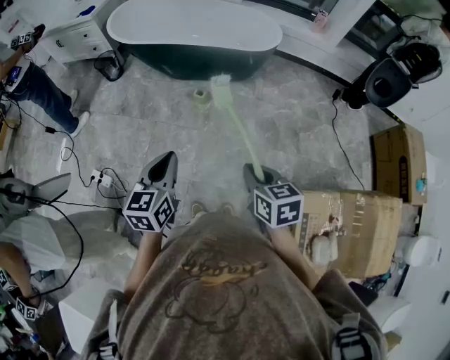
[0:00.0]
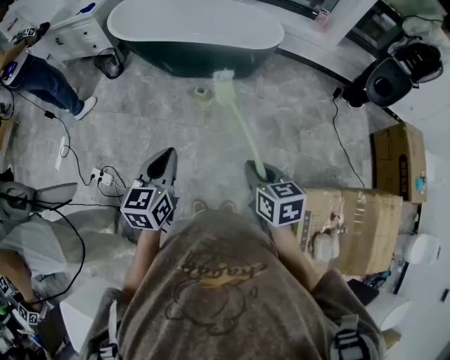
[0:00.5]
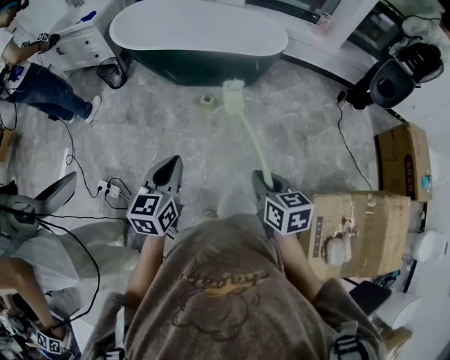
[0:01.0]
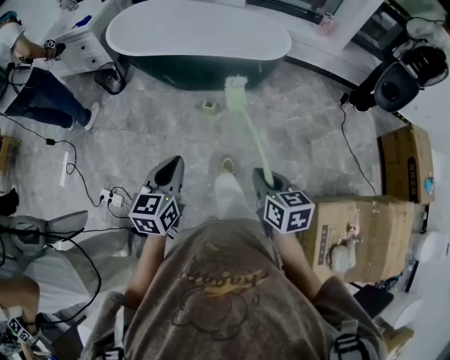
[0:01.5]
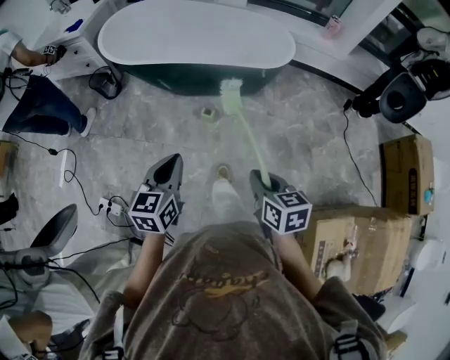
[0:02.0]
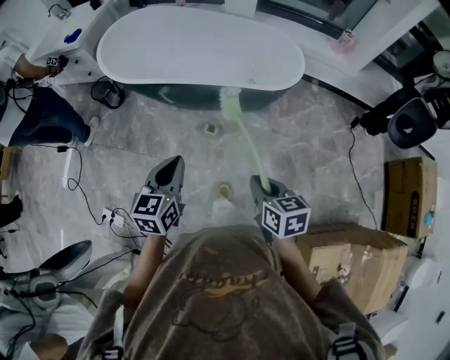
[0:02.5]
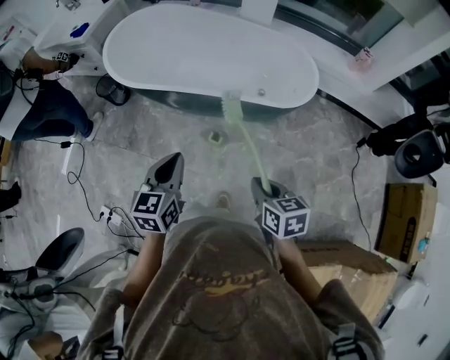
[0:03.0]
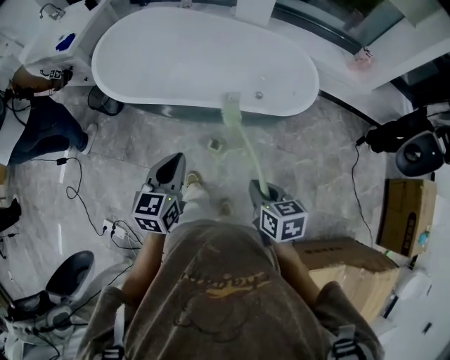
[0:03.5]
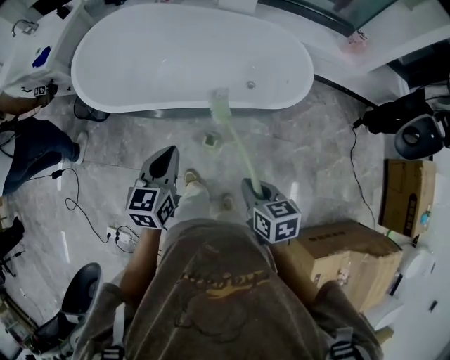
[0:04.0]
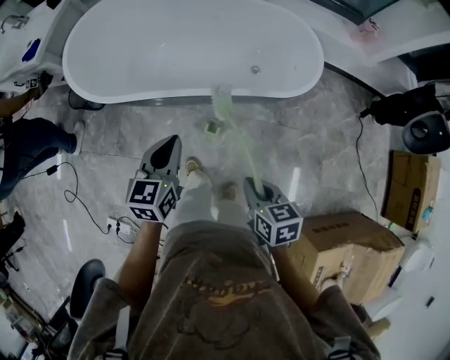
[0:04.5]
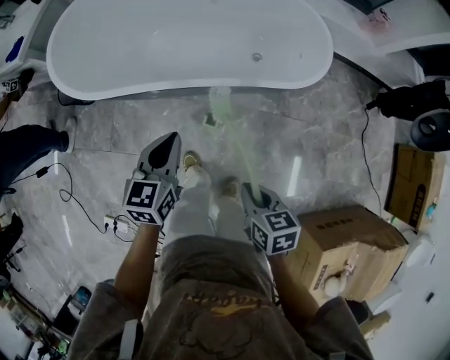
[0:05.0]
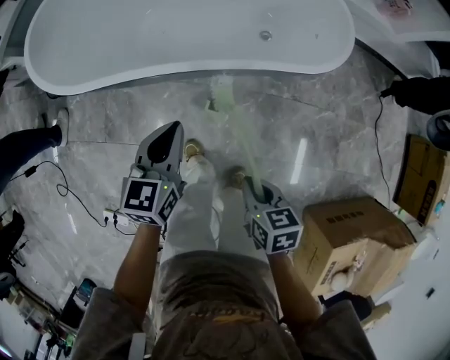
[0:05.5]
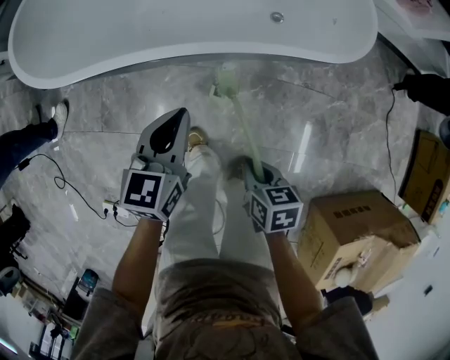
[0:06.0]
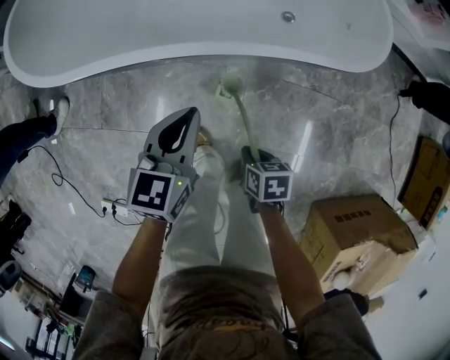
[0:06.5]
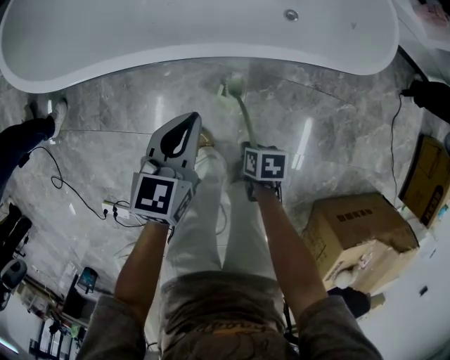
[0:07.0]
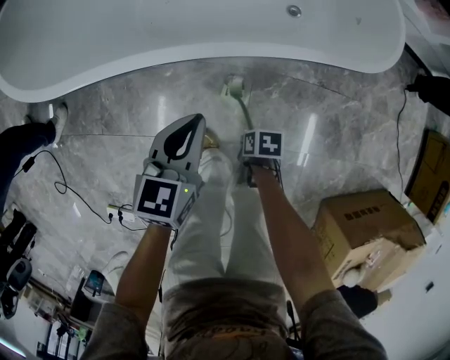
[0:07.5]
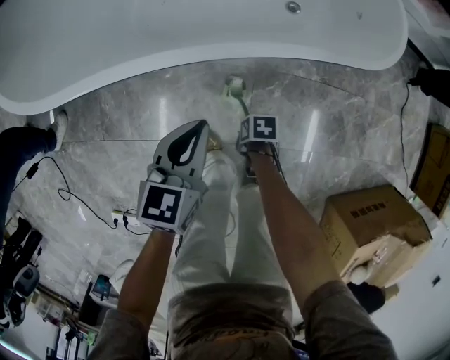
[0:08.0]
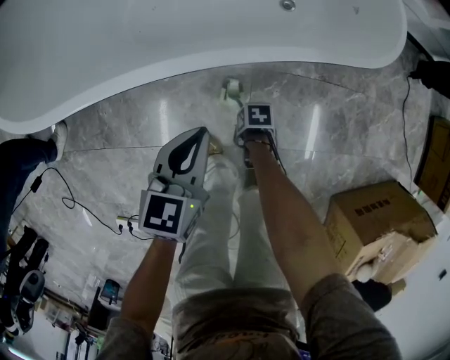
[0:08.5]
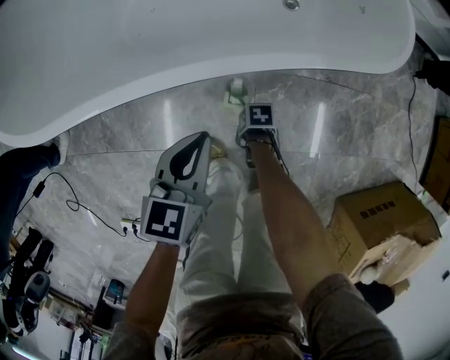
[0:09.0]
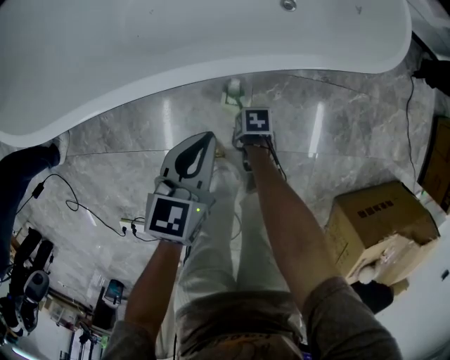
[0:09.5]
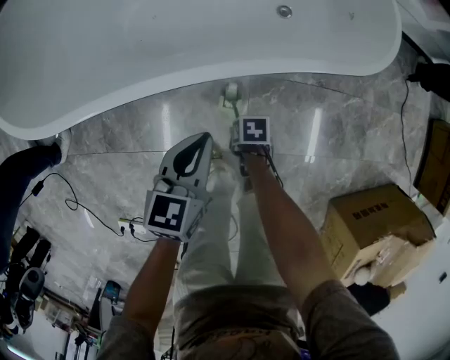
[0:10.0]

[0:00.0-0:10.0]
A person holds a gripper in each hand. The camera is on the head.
0:00.0 to 0:02.0: The grippers both shift forward by some 20 cm.
0:02.0 to 0:04.0: Both grippers move forward, roughly 35 cm.
0:04.0 to 0:06.0: Both grippers move downward, roughly 25 cm.
0:06.0 to 0:08.0: The left gripper heads downward, covering approximately 10 cm. The right gripper moves downward, approximately 25 cm, and changes its angle by approximately 40 degrees.
0:08.0 to 0:10.0: The right gripper changes place by some 5 cm, and opens up.

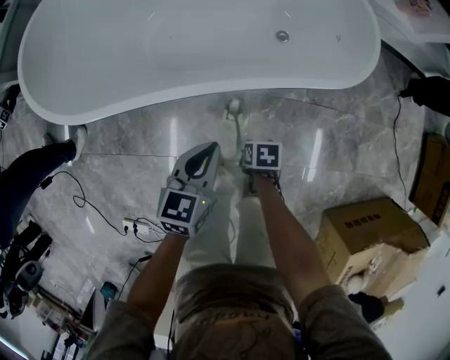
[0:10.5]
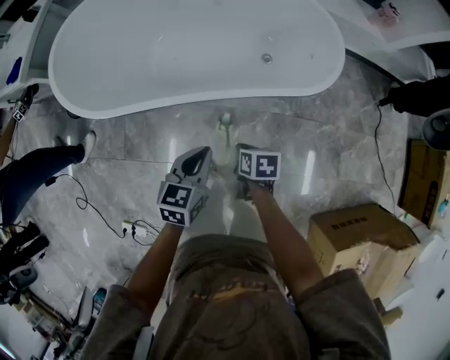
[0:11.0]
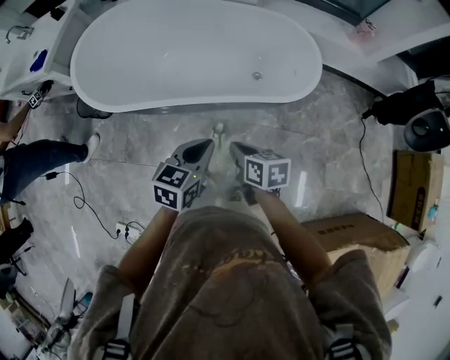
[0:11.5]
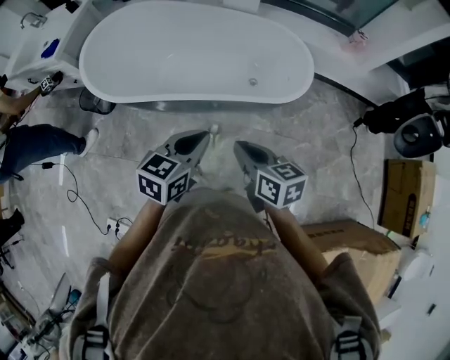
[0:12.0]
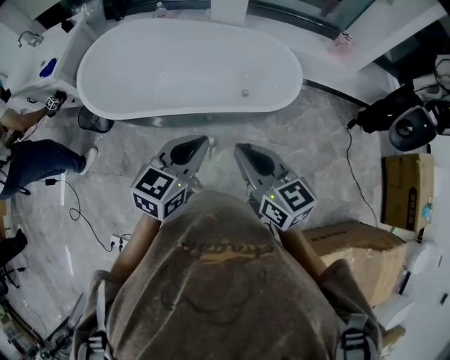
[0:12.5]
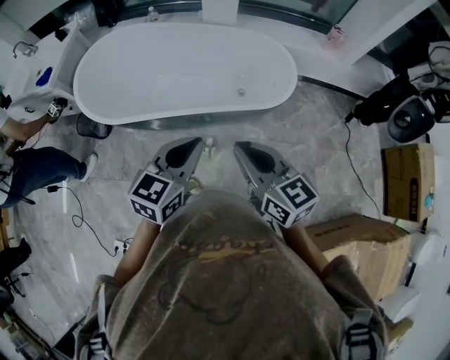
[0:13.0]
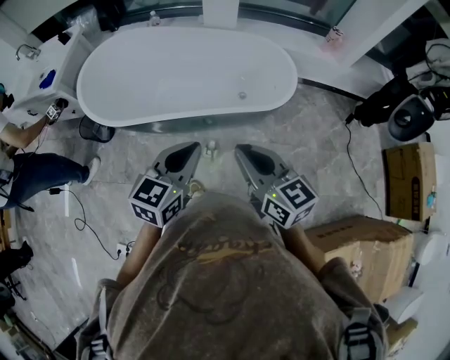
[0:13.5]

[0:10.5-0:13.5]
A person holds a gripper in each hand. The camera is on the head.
0:10.5 to 0:12.0: The right gripper moves upward, about 50 cm, and angles its fingers upward, by about 40 degrees; the left gripper shifts approximately 30 cm upward.
0:12.0 to 0:13.5: The right gripper moves upward, some 10 cm, and rotates some 20 degrees; the left gripper moves upward, about 5 cm.

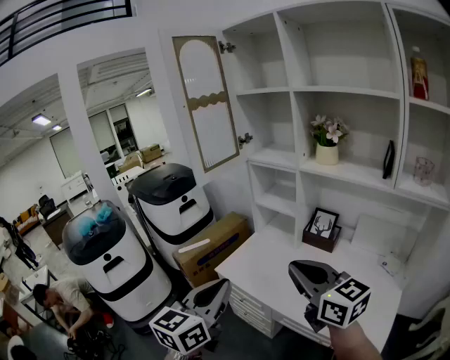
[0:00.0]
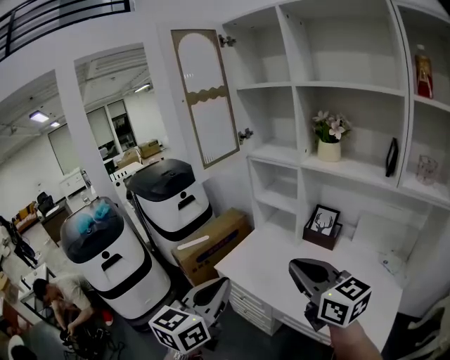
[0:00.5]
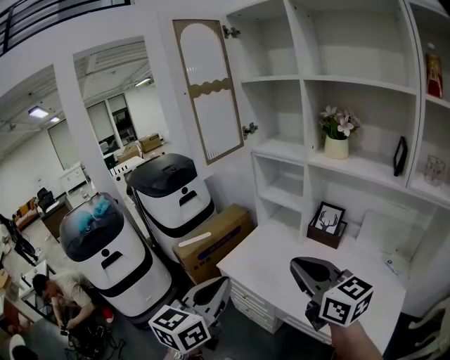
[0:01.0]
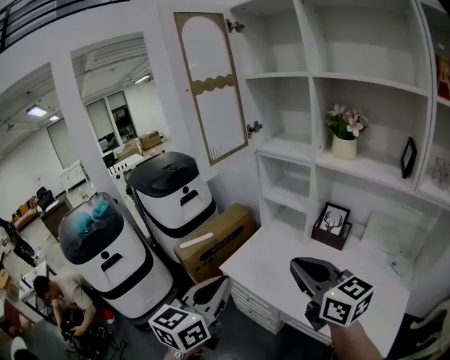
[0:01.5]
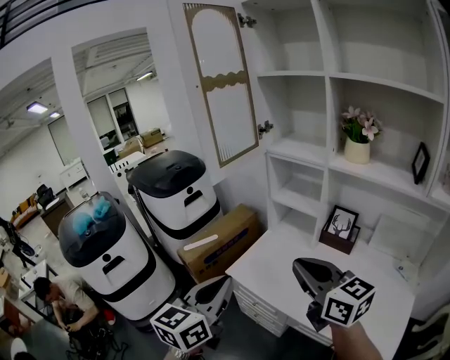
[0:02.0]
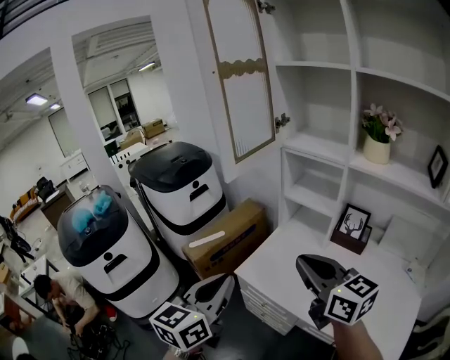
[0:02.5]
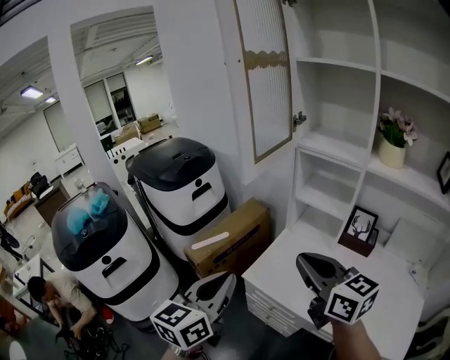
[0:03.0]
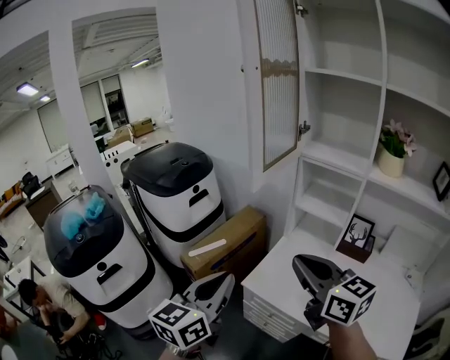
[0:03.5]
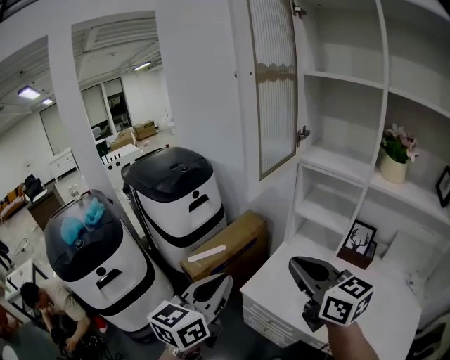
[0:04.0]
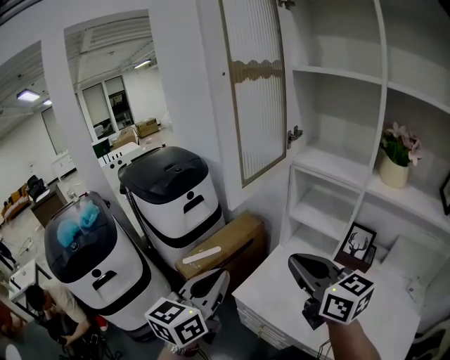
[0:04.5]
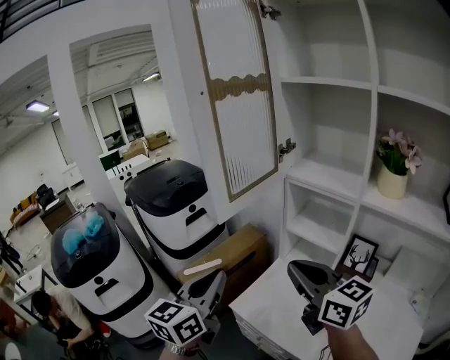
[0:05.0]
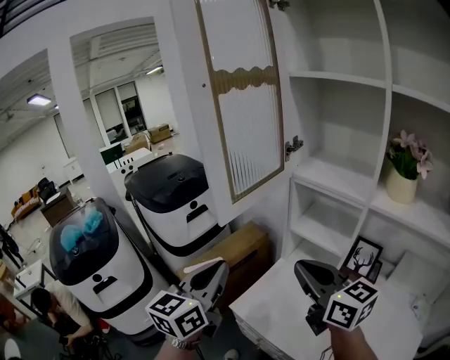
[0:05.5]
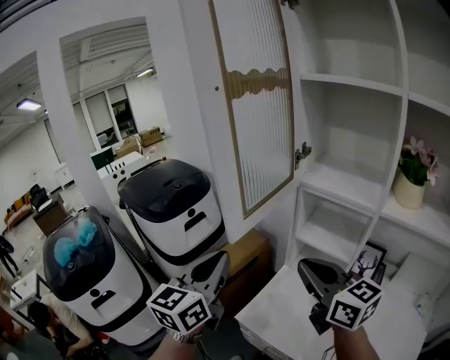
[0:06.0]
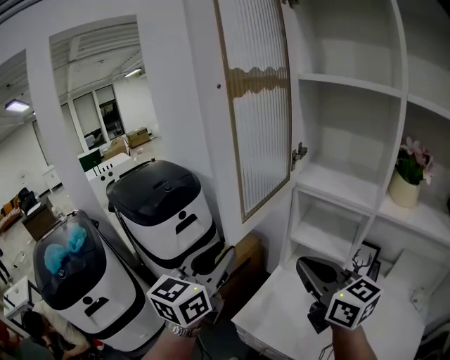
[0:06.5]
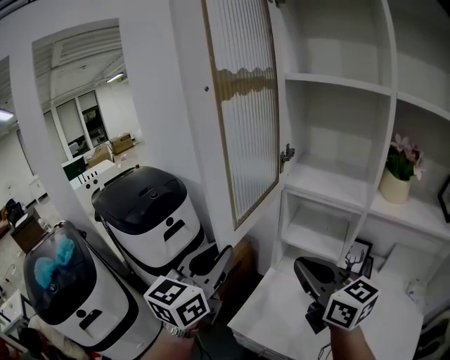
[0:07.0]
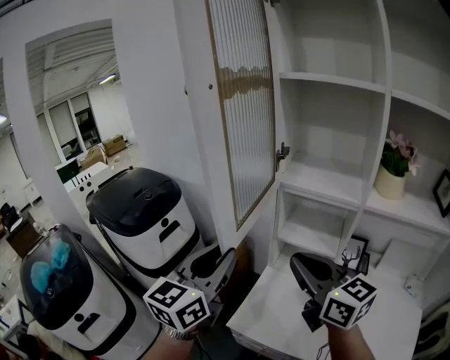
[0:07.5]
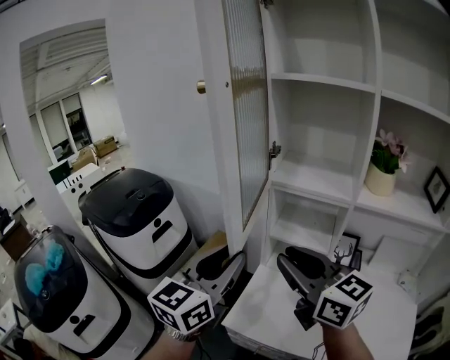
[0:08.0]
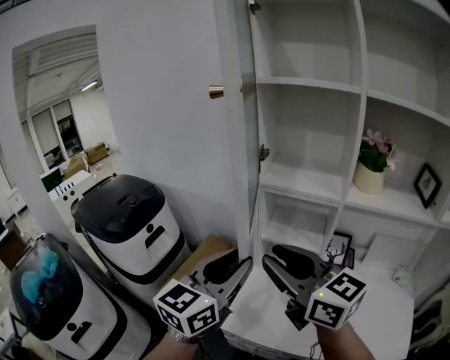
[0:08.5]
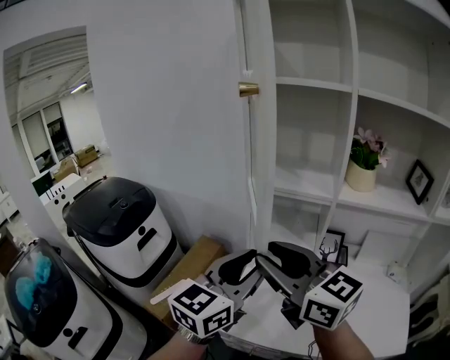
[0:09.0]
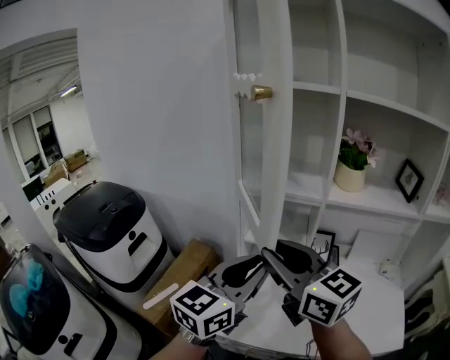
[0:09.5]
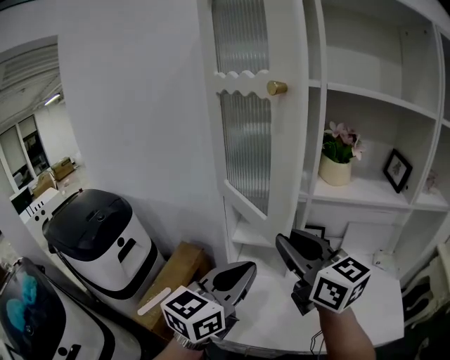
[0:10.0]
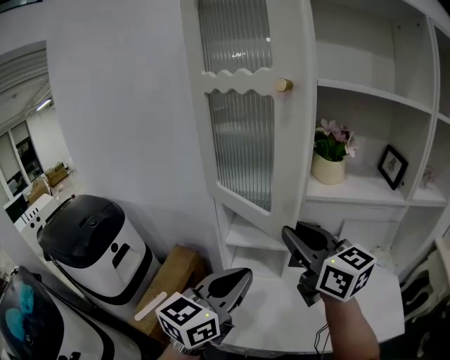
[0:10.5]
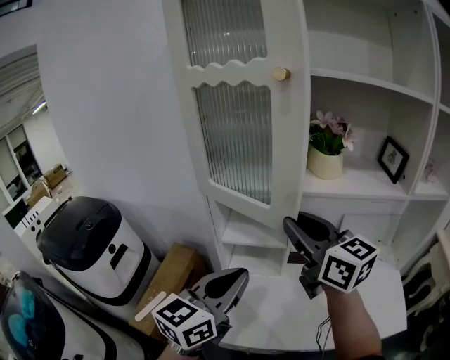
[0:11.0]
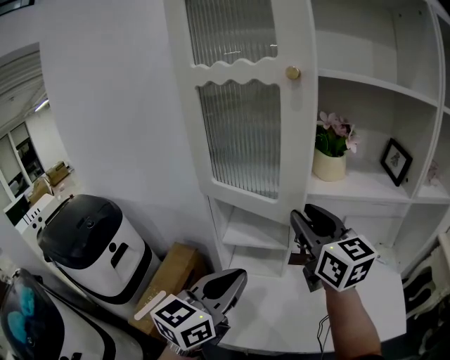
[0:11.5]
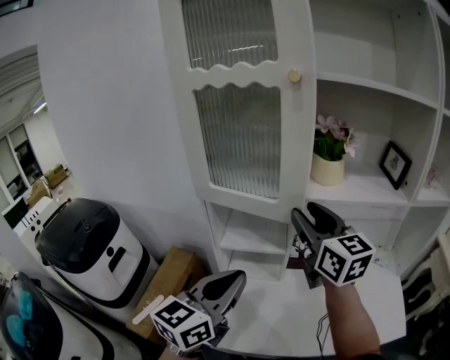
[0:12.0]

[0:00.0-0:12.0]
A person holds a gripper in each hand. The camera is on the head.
0:00.0 to 0:02.0: The grippers both shift forward and to the left by roughly 10 cm.
0:02.0 to 0:04.0: The right gripper heads to the left and forward, covering approximately 20 cm. The left gripper travels forward and to the left by some 20 cm.
0:04.0 to 0:06.0: The right gripper travels forward and to the right by roughly 15 cm; the left gripper is displaced forward by about 15 cm.
0:06.0 to 0:08.0: The left gripper is displaced to the right by some 5 cm, rotates roughly 20 degrees, and opens up.
0:08.0 to 0:10.0: Both grippers move to the right, about 10 cm. The left gripper changes its angle by approximately 20 degrees, and closes up.
0:10.0 to 0:12.0: The right gripper travels forward and to the right by approximately 15 cm, and opens.

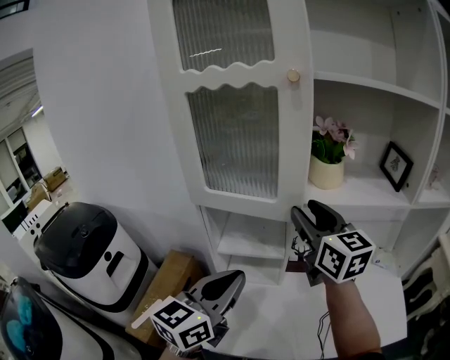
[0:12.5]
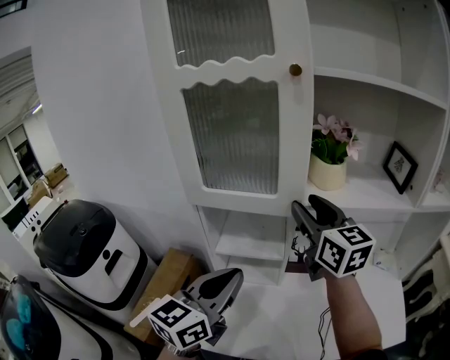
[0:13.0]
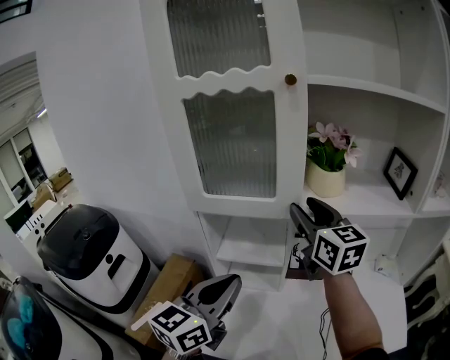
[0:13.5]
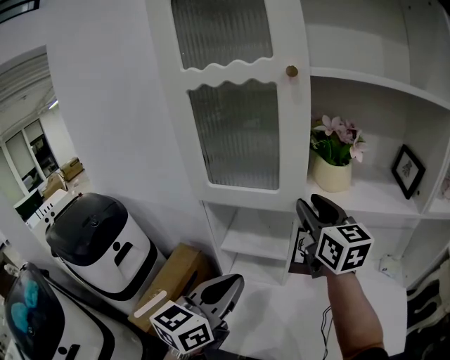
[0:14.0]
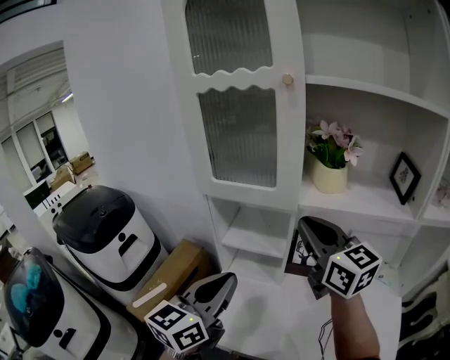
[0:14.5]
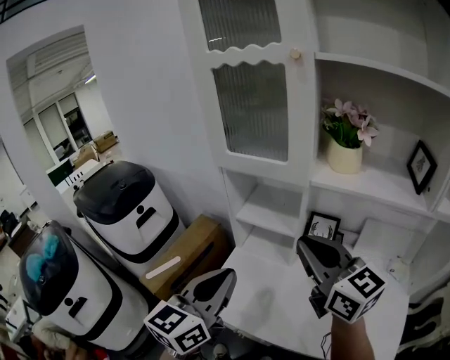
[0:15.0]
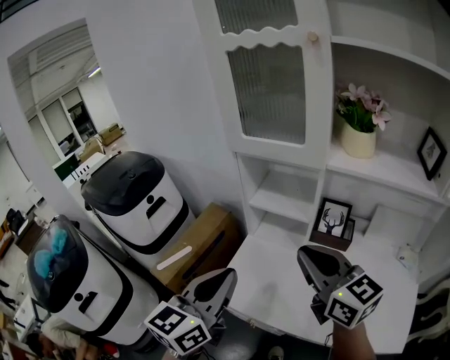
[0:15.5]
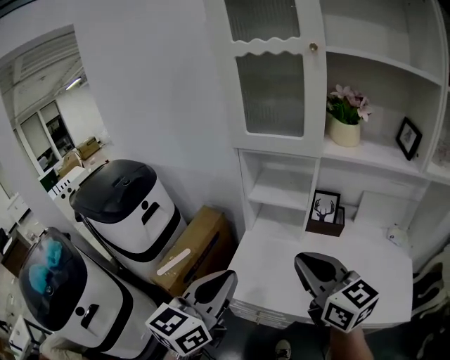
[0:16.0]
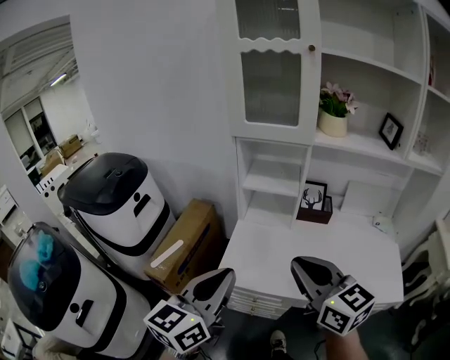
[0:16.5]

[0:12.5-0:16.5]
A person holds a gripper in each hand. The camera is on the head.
0:12.5 to 0:14.5: The right gripper ends up approximately 5 cm from where it was, and closes.
0:14.5 to 0:16.5: Both grippers move backward and to the left, about 30 cm.
